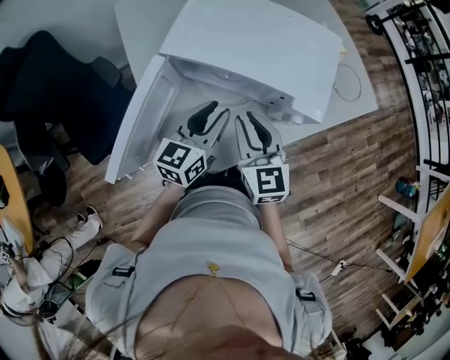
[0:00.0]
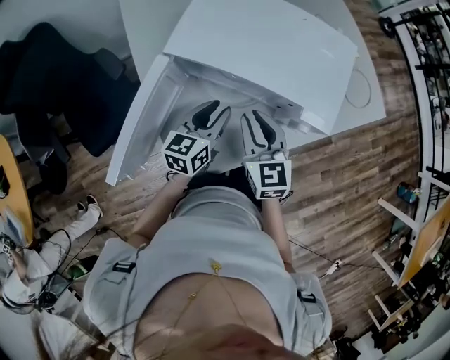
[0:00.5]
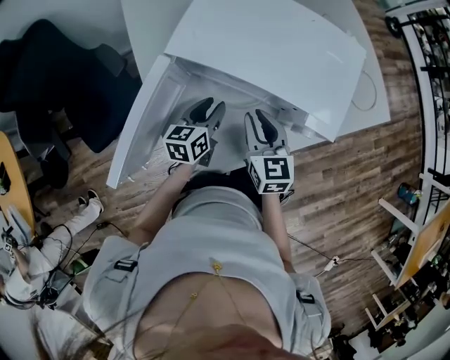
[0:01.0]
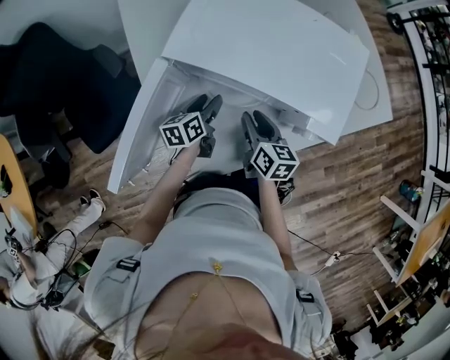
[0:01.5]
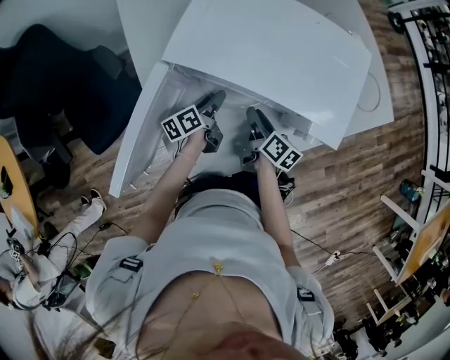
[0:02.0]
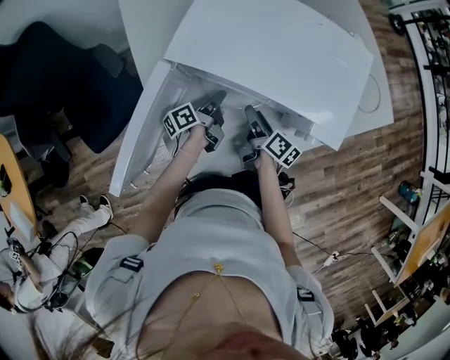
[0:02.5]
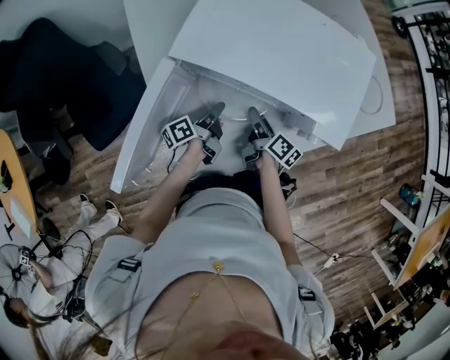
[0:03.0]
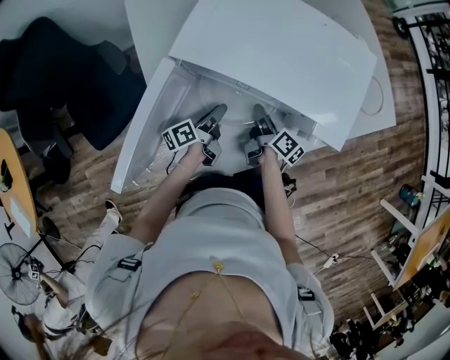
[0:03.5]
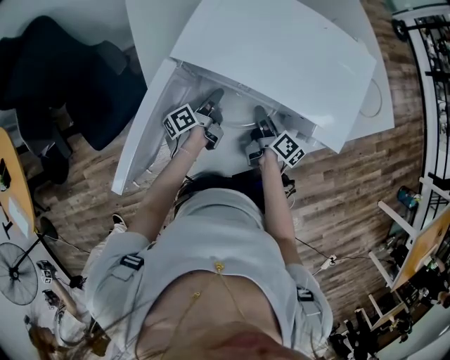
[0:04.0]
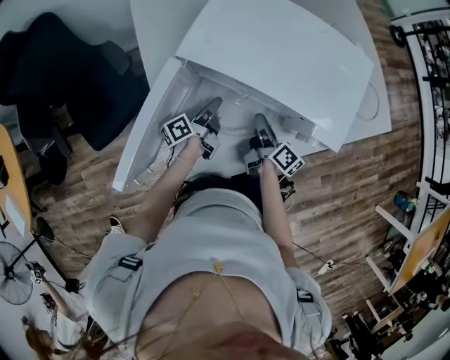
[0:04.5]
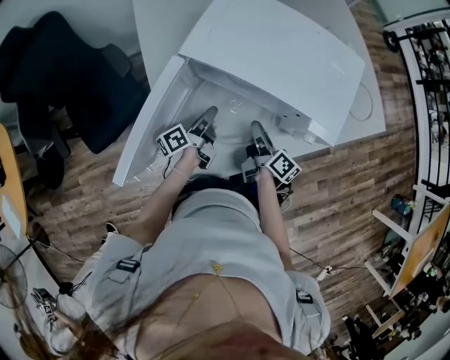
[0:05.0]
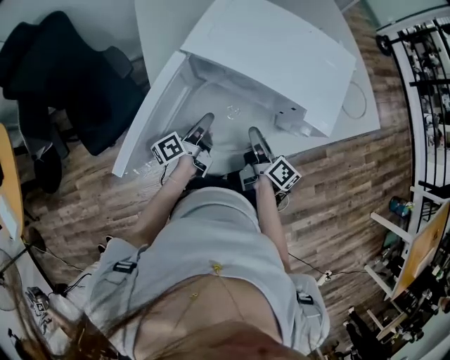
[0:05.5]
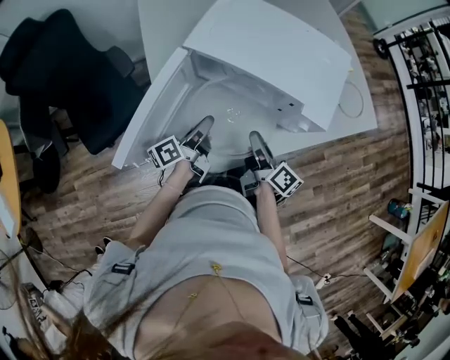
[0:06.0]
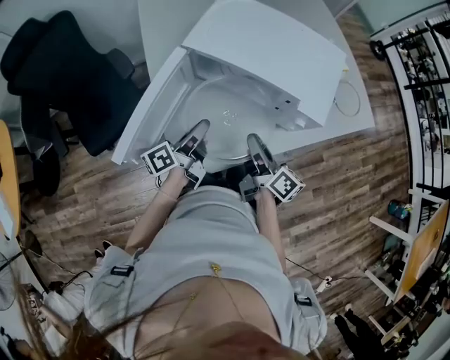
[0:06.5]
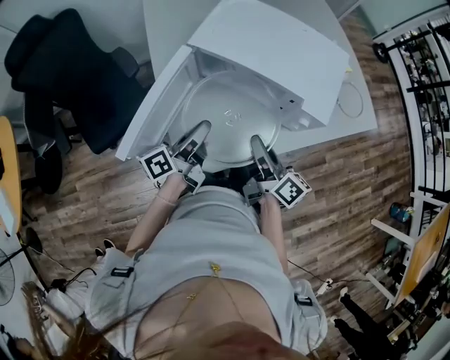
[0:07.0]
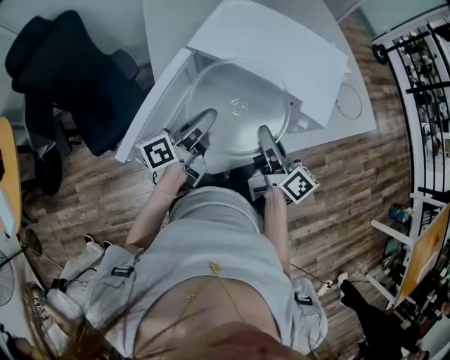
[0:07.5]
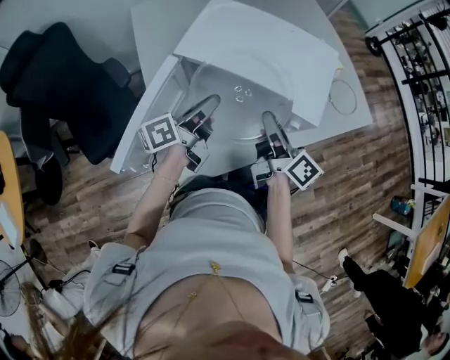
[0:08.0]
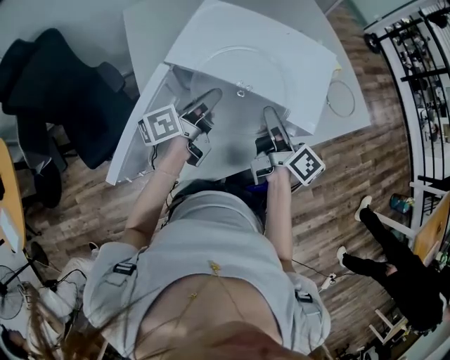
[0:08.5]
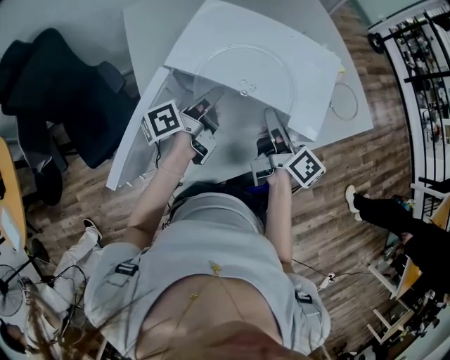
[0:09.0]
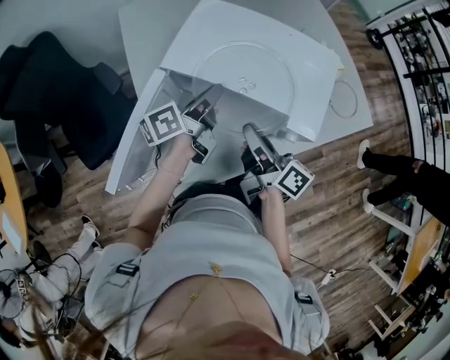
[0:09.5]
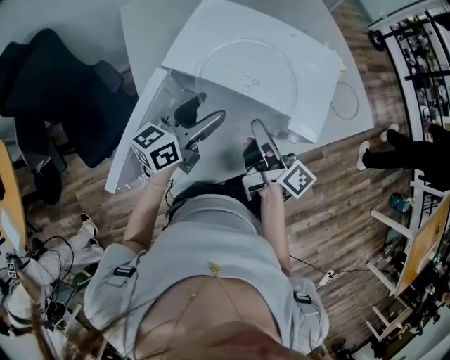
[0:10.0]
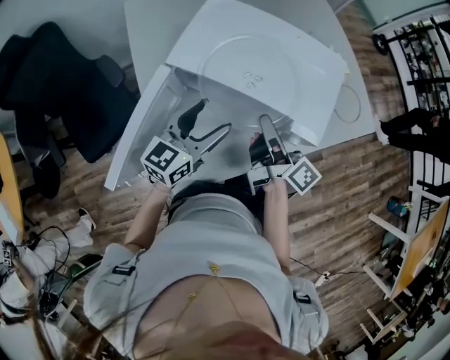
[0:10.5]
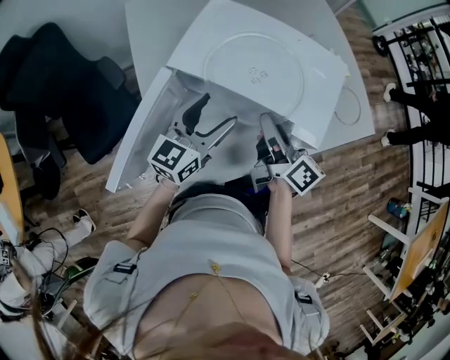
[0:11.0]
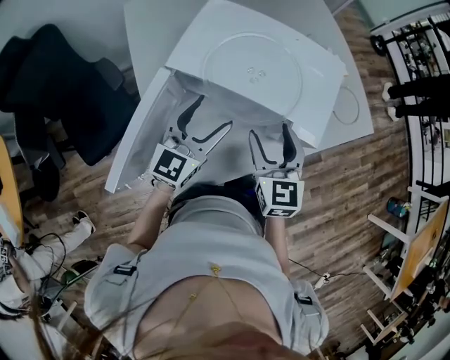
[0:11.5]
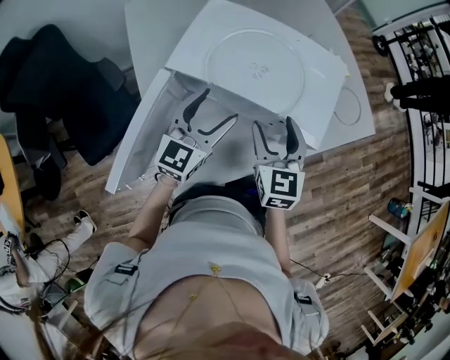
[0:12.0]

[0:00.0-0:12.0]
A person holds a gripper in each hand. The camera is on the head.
0:00.0 to 0:02.0: The grippers both shift downward by approximately 20 cm. The left gripper rolls counterclockwise, seen from behind, by approximately 50 degrees. Meanwhile the right gripper rotates around the line of its fingers by about 60 degrees, clockwise from behind.
0:02.0 to 0:04.0: The left gripper closes up.
0:04.0 to 0:06.0: The left gripper goes some 15 cm backward and upward. Meanwhile the right gripper moves upward and backward, some 15 cm.
0:06.0 to 0:08.0: The grippers both shift upward by some 10 cm.
0:08.0 to 0:10.0: The left gripper rotates approximately 30 degrees, and opens.
0:10.0 to 0:12.0: The left gripper changes its angle by about 30 degrees. Meanwhile the right gripper rolls counterclockwise, seen from behind, by roughly 70 degrees, and opens its fingers.

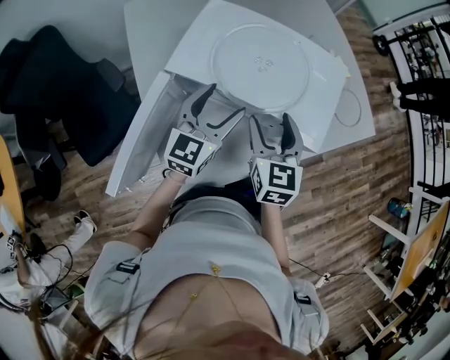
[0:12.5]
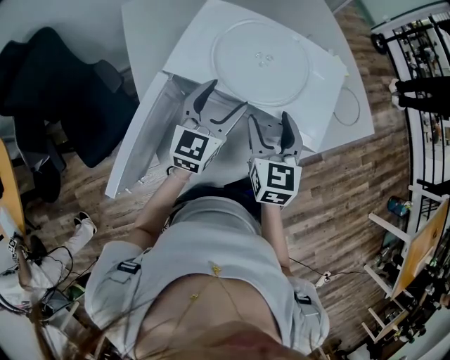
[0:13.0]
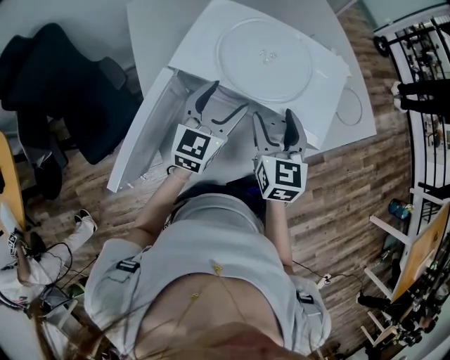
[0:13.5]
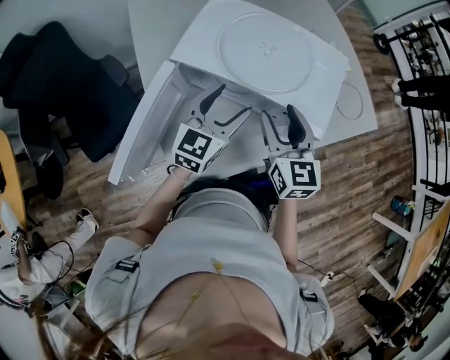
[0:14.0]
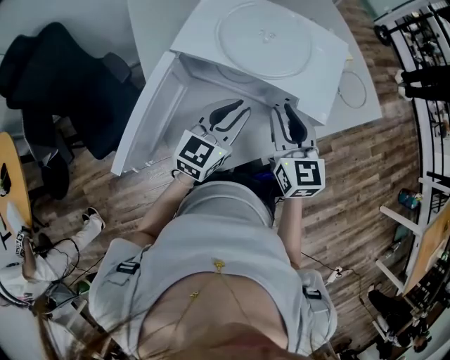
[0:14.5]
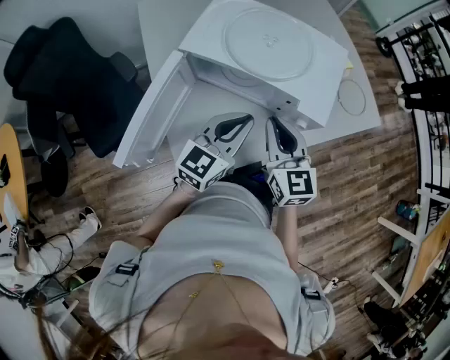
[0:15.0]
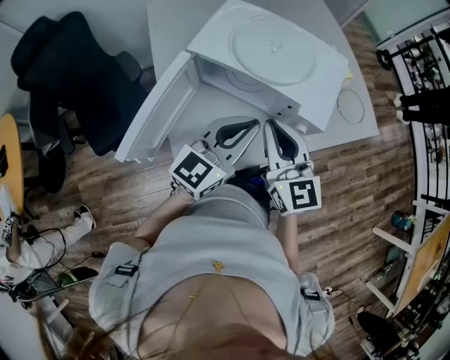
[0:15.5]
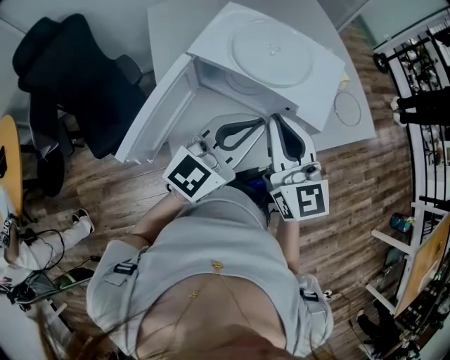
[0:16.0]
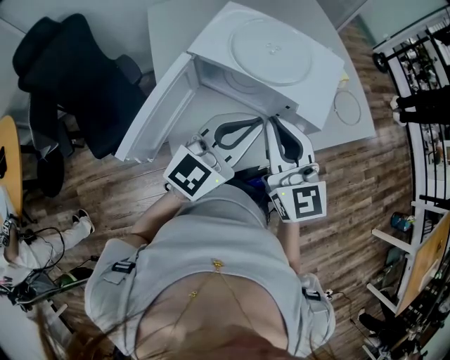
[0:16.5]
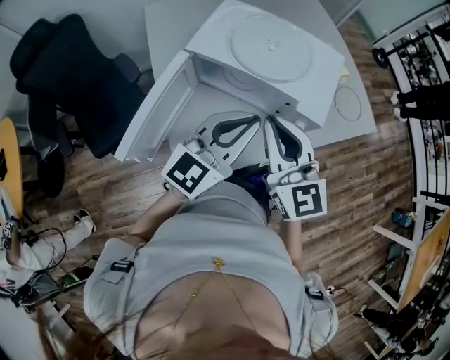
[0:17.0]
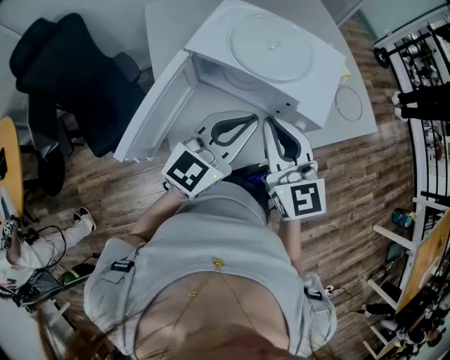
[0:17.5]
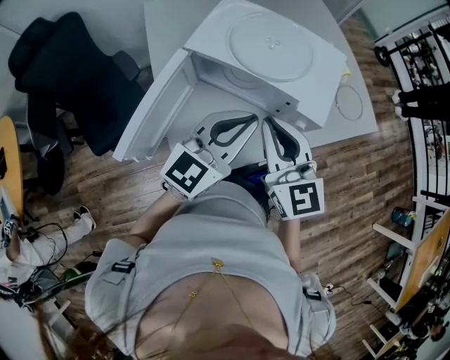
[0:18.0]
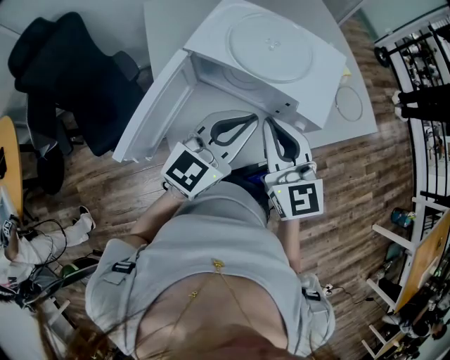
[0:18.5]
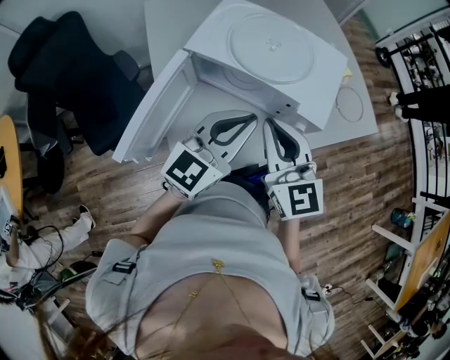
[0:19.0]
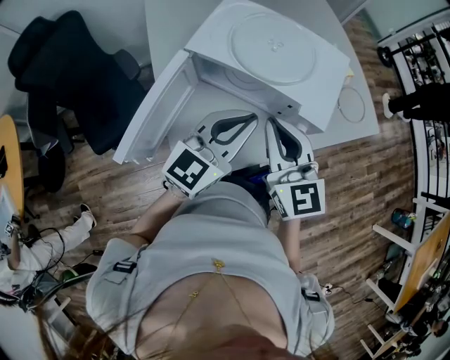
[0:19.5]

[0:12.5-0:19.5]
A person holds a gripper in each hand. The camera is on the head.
0:12.5 to 0:14.5: The left gripper goes some 10 cm backward, and closes its fingers; the right gripper travels backward by approximately 5 cm, and closes up.
0:14.5 to 0:16.0: Both grippers move upward and backward, about 15 cm. The right gripper swivels approximately 20 degrees.
0:16.0 to 0:19.5: There are only small adjustments of the grippers.

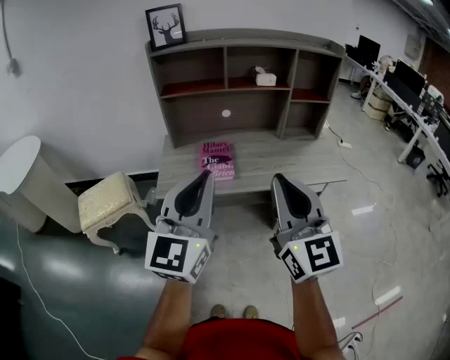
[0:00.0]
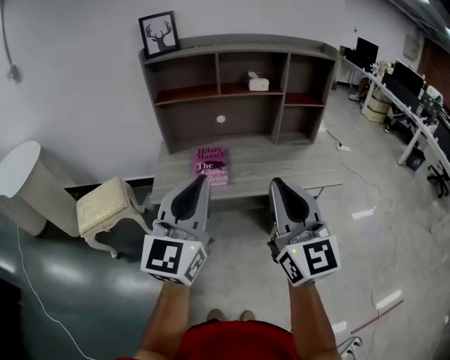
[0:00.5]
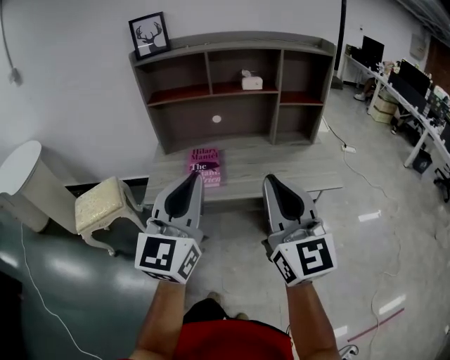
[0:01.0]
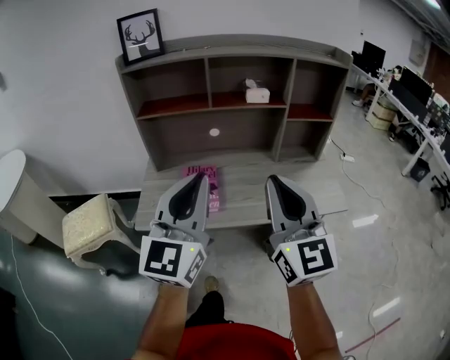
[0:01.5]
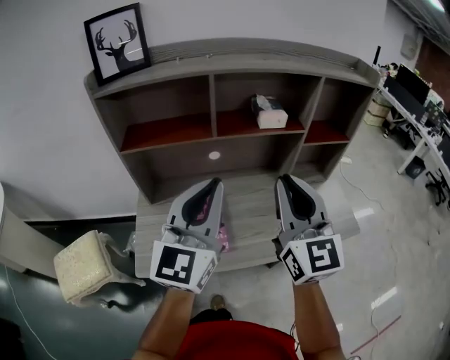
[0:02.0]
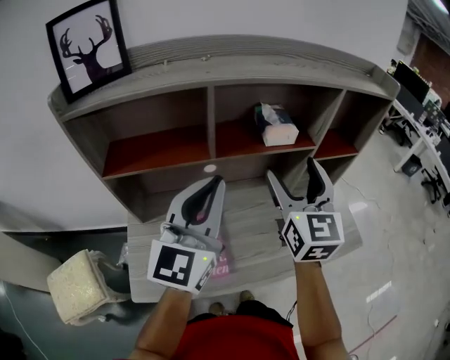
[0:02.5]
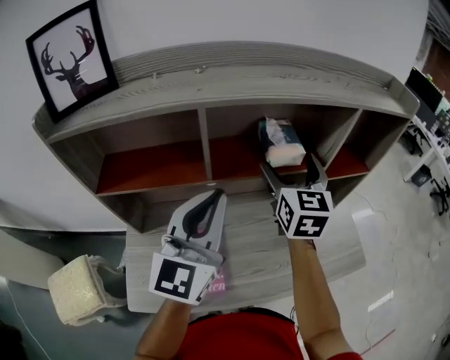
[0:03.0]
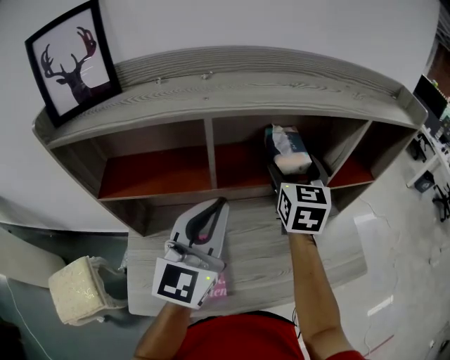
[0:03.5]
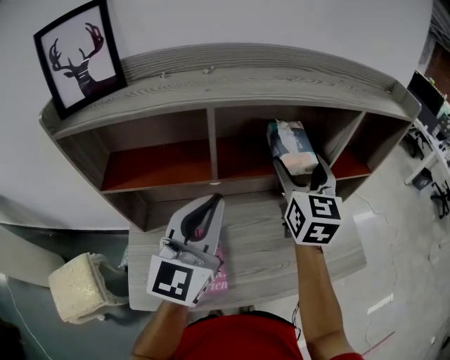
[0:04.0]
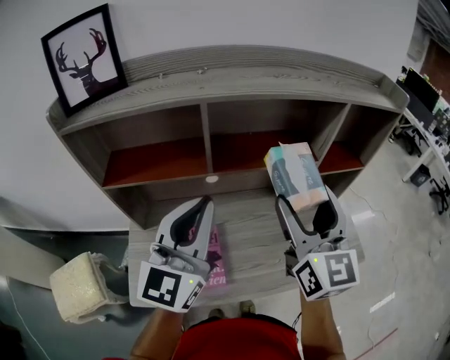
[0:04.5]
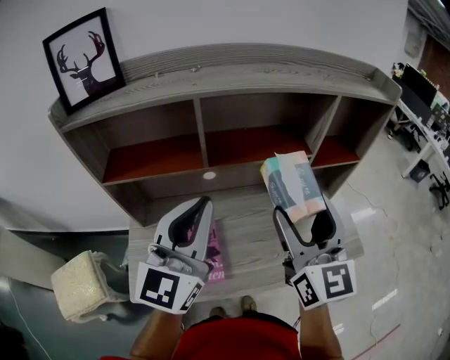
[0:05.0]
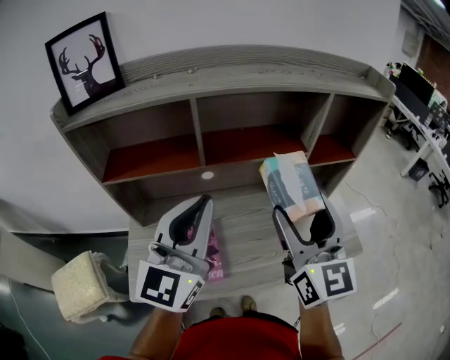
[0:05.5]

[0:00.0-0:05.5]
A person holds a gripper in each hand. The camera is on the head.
0:00.0 to 0:02.0: The two grippers go approximately 35 cm forward.
0:02.0 to 0:03.5: The right gripper travels forward by roughly 30 cm, turns by approximately 30 degrees, and opens. The left gripper moves forward, some 20 cm.
0:03.5 to 0:05.5: The right gripper travels backward by roughly 25 cm, and turns by roughly 20 degrees; the left gripper is displaced backward and upward by roughly 10 cm.

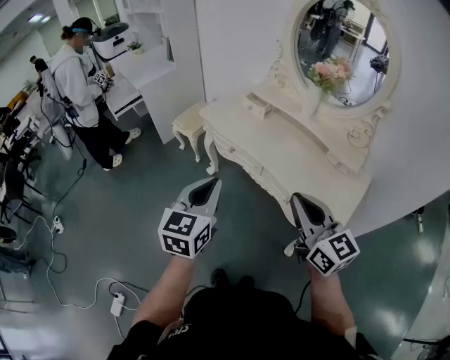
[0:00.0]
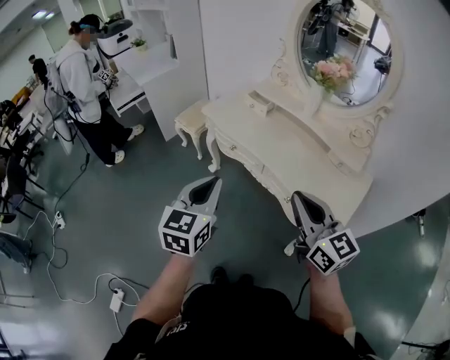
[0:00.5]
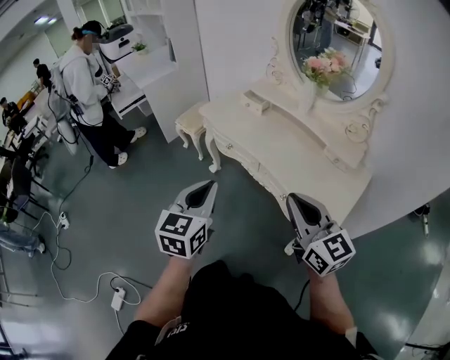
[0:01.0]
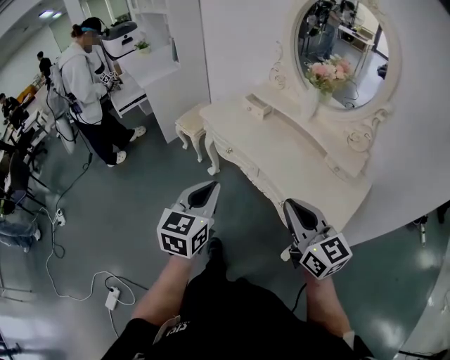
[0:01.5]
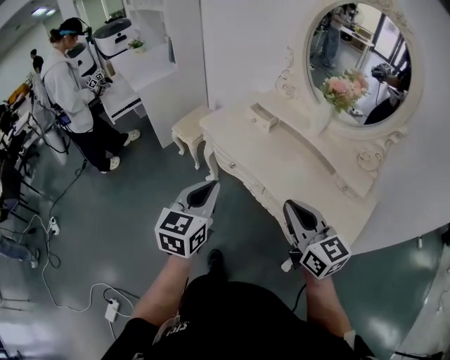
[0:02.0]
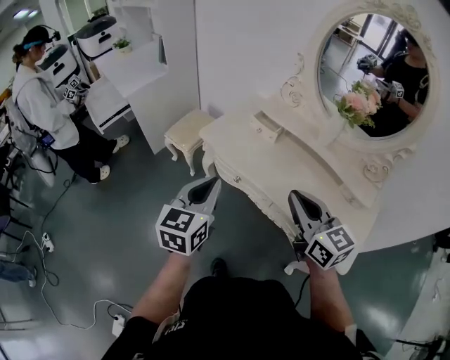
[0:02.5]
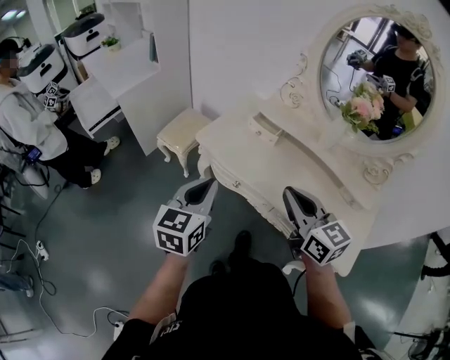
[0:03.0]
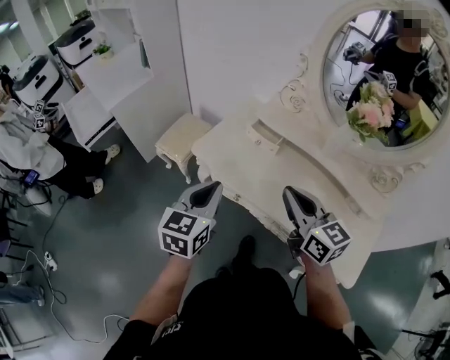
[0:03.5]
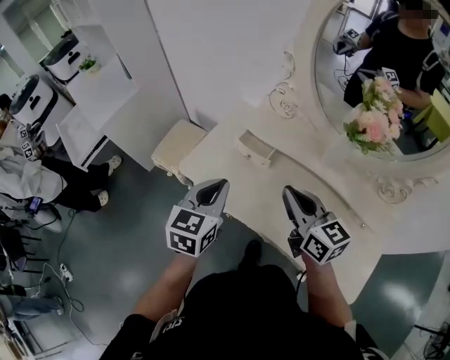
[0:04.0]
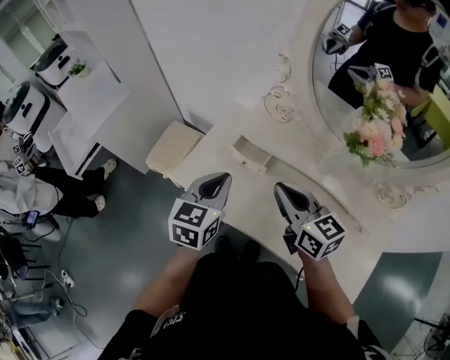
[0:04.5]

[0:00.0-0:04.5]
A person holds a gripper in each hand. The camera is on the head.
0:00.0 to 0:02.0: The two grippers go approximately 10 cm forward.
0:02.0 to 0:04.5: The grippers both shift forward by roughly 40 cm.
